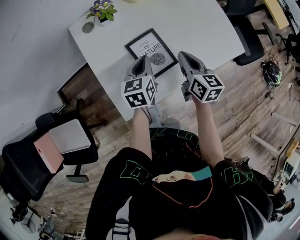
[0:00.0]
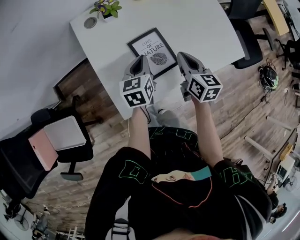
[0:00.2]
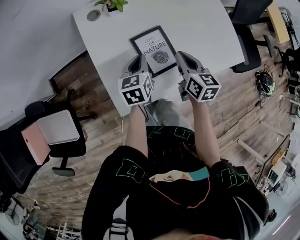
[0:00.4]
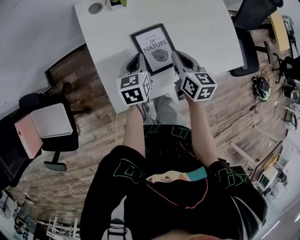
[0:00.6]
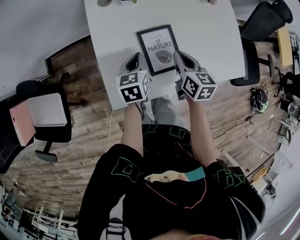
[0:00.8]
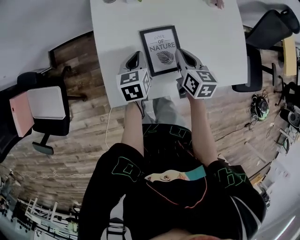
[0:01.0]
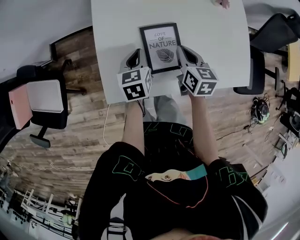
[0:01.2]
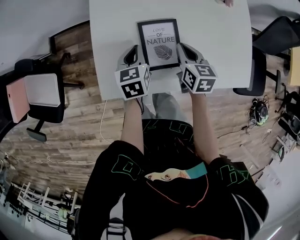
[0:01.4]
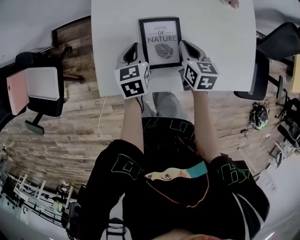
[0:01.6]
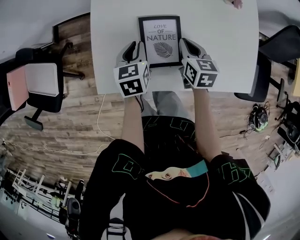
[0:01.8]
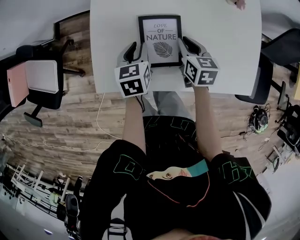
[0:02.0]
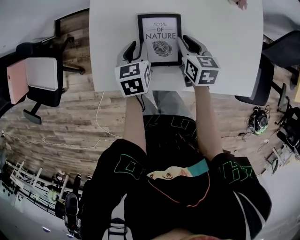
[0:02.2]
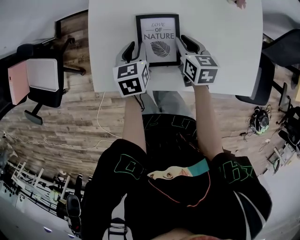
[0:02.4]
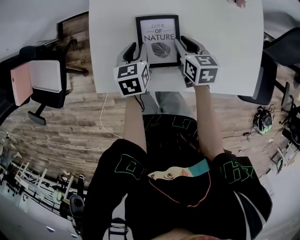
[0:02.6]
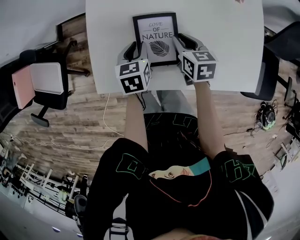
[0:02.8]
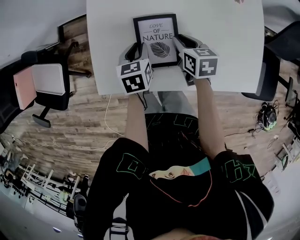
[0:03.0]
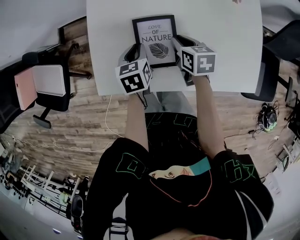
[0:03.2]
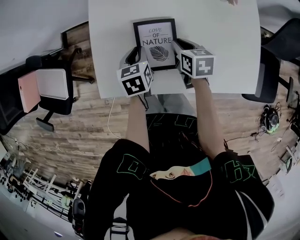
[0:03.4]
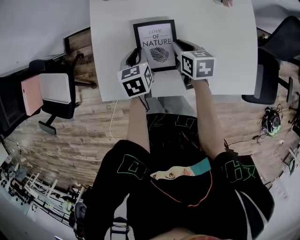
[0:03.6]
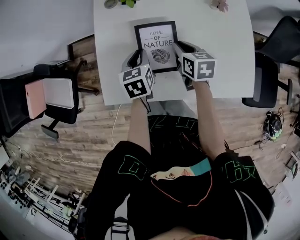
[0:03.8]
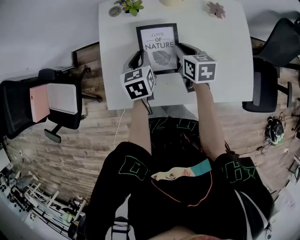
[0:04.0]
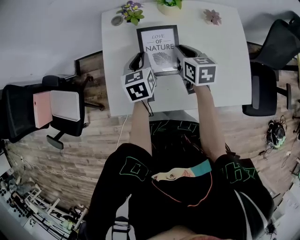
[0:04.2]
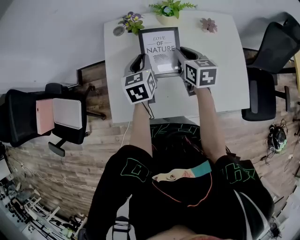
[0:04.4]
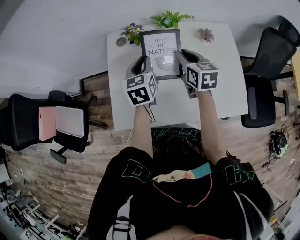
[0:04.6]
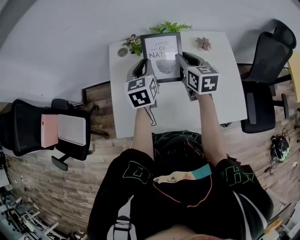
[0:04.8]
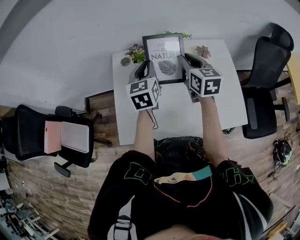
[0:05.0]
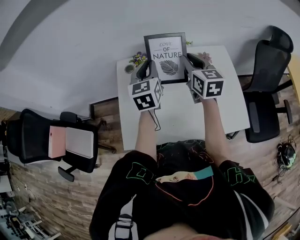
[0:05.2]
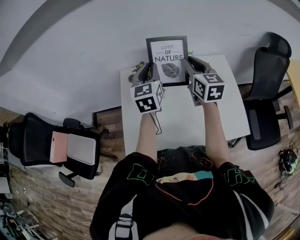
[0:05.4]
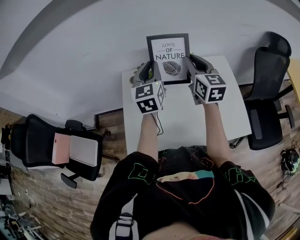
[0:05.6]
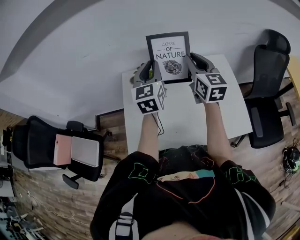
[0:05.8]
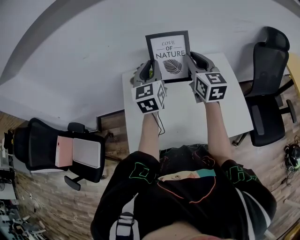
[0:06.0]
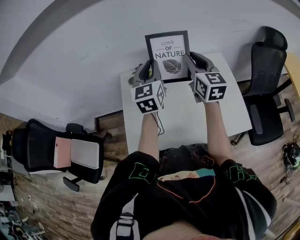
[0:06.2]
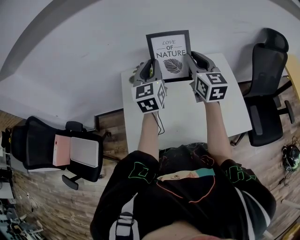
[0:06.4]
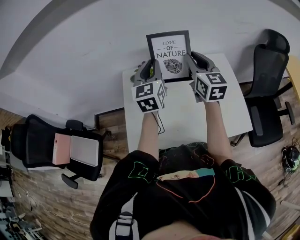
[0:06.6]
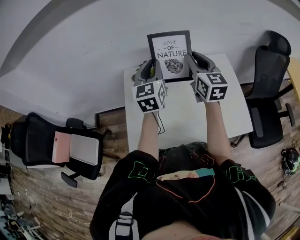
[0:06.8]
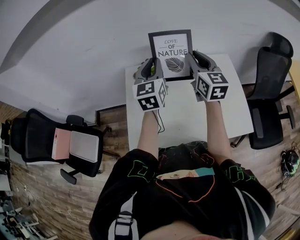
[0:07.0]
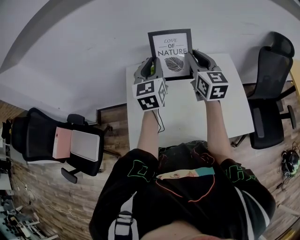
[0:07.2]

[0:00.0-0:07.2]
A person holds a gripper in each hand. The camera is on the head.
0:00.0 to 0:01.4: The right gripper moves downward and forward, approximately 10 cm, and swivels roughly 30 degrees, while the left gripper shifts some 10 cm downward and to the left, and rotates roughly 30 degrees.
0:01.4 to 0:02.8: The left gripper opens up.
0:02.8 to 0:04.4: Both grippers travel together upward and forward, roughly 15 cm.
0:04.4 to 0:05.8: The two grippers go some 20 cm upward. The right gripper swivels approximately 30 degrees, while the left gripper changes its angle by approximately 30 degrees.
0:05.8 to 0:07.2: The grippers make only small movements.

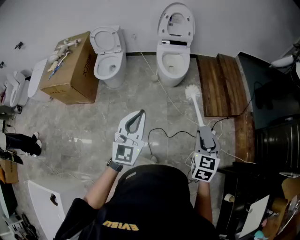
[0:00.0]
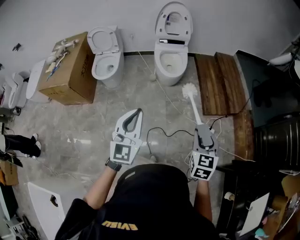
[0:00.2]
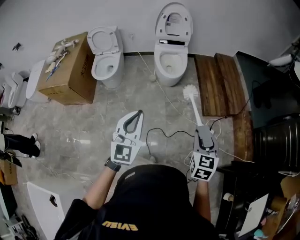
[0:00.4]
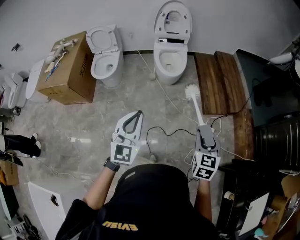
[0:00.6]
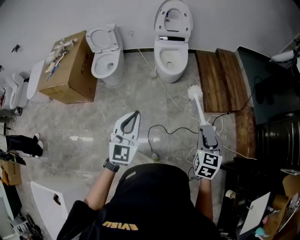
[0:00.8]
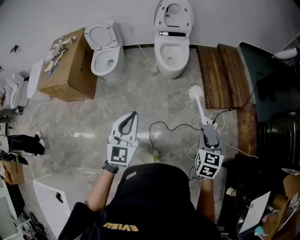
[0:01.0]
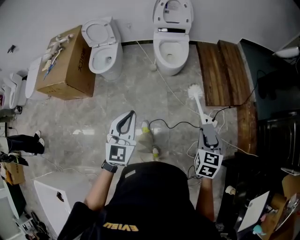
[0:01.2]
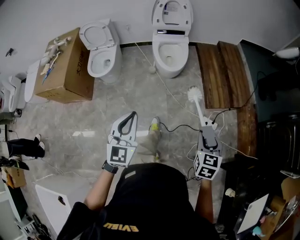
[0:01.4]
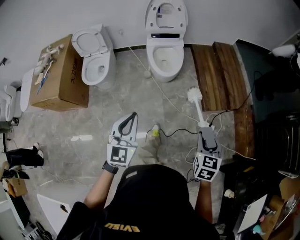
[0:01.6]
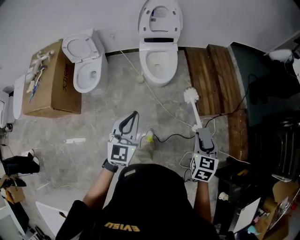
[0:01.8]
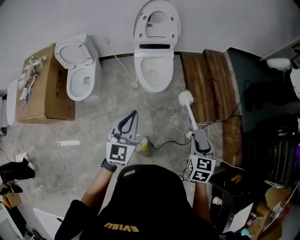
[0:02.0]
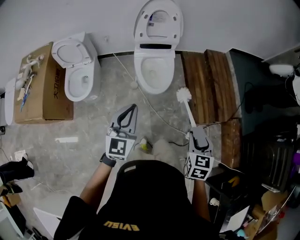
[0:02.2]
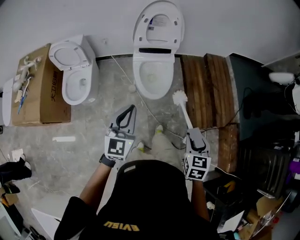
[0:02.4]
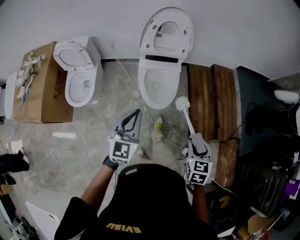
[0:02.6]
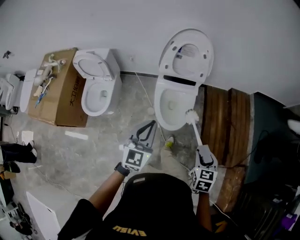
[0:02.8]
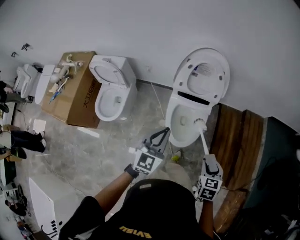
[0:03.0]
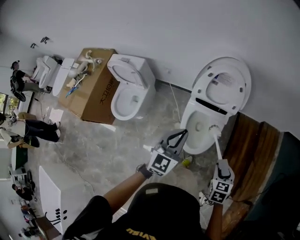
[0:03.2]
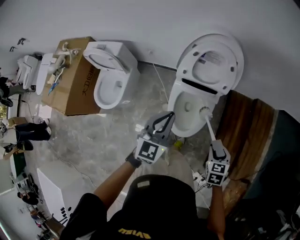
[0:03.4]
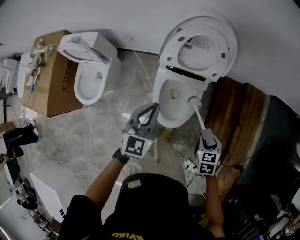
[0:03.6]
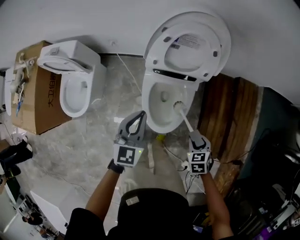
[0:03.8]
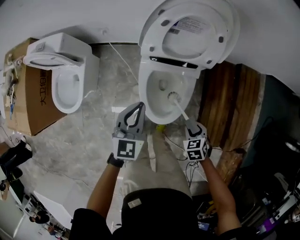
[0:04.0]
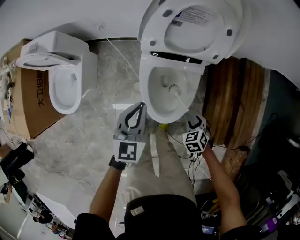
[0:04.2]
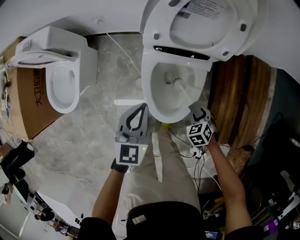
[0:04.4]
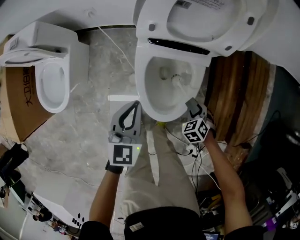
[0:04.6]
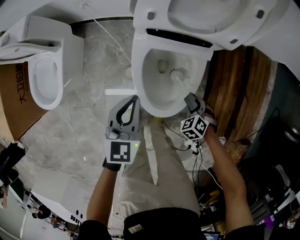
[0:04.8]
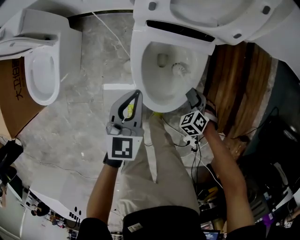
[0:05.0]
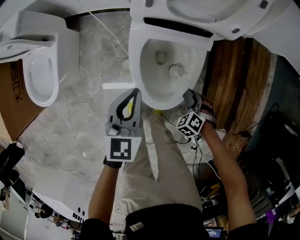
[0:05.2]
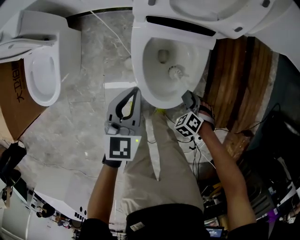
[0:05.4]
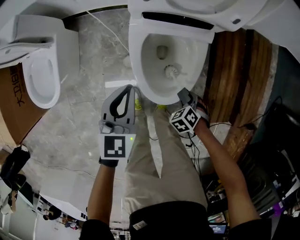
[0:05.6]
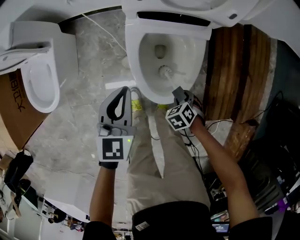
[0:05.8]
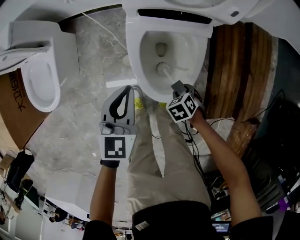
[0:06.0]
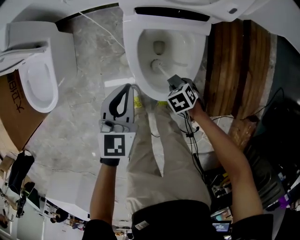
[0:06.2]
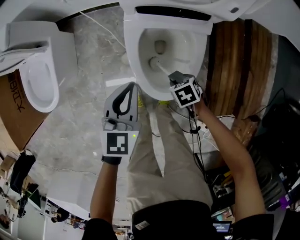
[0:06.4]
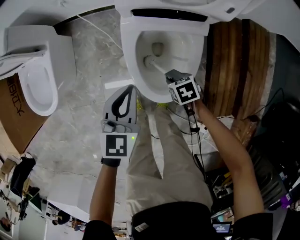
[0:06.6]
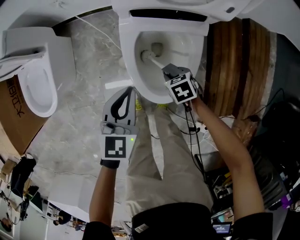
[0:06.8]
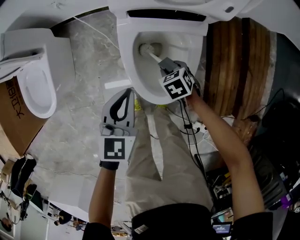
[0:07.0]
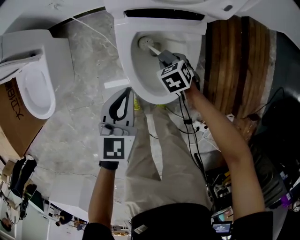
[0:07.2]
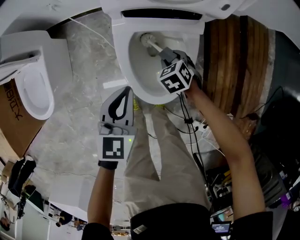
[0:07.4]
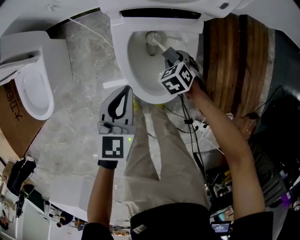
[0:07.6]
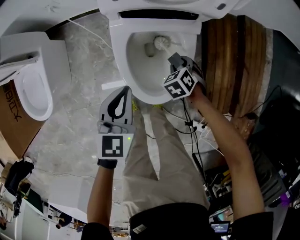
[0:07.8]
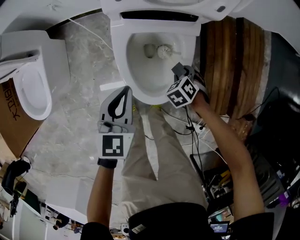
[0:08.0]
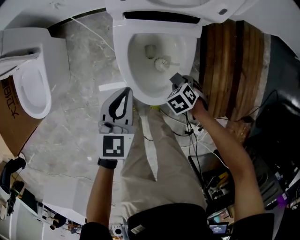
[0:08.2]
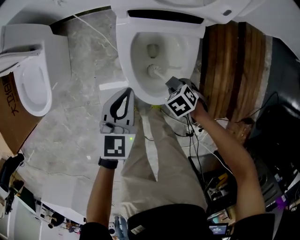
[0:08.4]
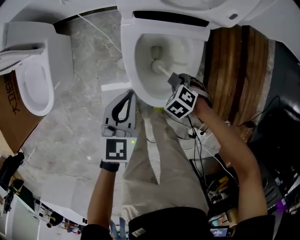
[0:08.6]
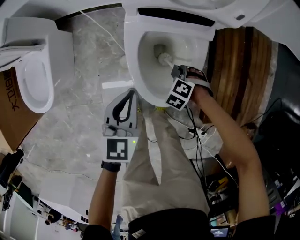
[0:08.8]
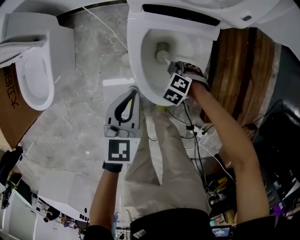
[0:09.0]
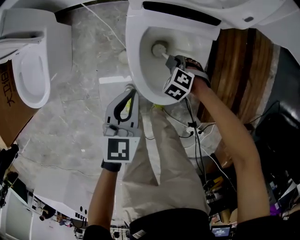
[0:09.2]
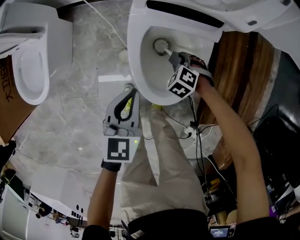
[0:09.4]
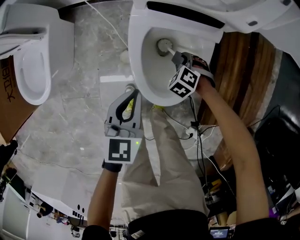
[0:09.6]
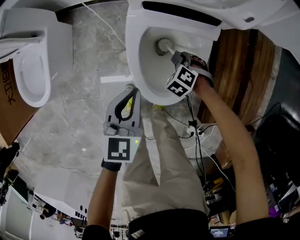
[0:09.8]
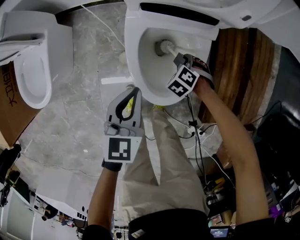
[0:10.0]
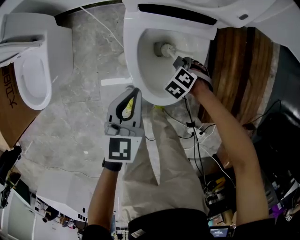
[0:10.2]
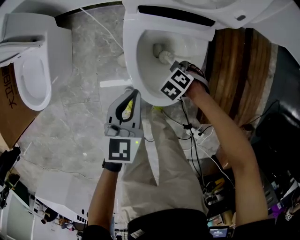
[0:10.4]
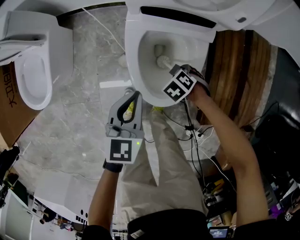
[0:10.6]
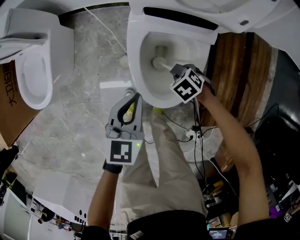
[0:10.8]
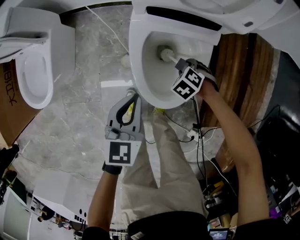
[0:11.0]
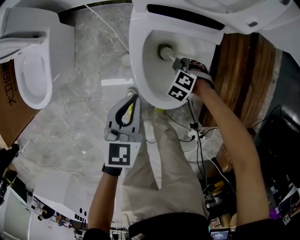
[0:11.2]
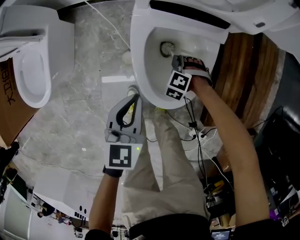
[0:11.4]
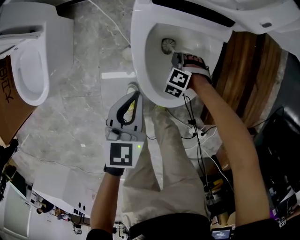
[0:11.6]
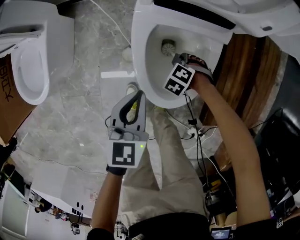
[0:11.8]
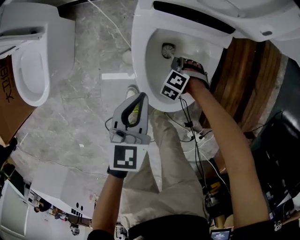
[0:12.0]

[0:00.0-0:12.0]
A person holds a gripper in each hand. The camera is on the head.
0:00.0 to 0:01.6: Both grippers move forward, about 15 cm.
0:01.6 to 0:03.0: The pair of grippers is taken forward, some 60 cm. The right gripper swivels some 20 degrees.
0:03.0 to 0:04.4: The two grippers go about 40 cm downward and forward. The right gripper rotates approximately 40 degrees.
0:04.4 to 0:06.0: Both grippers travel together downward, approximately 10 cm.
0:06.0 to 0:07.6: The right gripper ends up about 15 cm from where it was.
0:07.6 to 0:09.0: The right gripper moves some 10 cm, and changes its angle by some 40 degrees.
0:09.0 to 0:10.4: The grippers move only a little.
0:10.4 to 0:12.0: The right gripper goes some 10 cm downward.

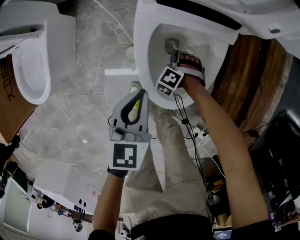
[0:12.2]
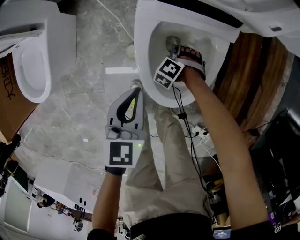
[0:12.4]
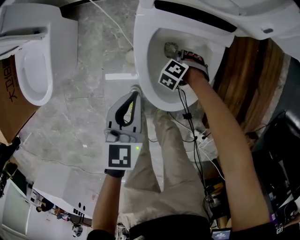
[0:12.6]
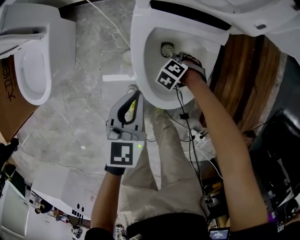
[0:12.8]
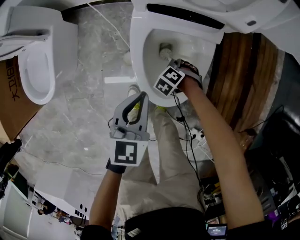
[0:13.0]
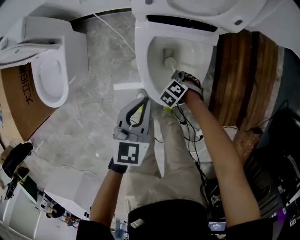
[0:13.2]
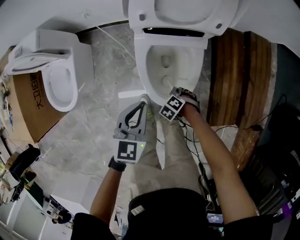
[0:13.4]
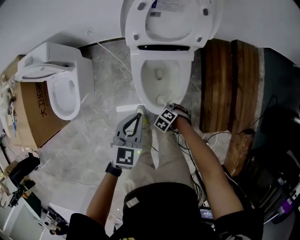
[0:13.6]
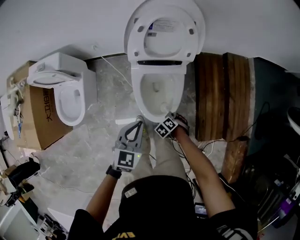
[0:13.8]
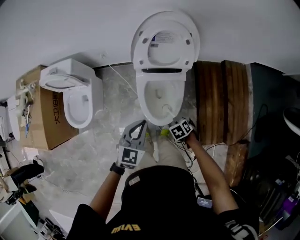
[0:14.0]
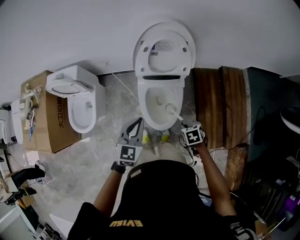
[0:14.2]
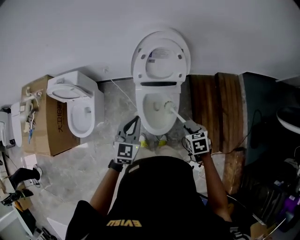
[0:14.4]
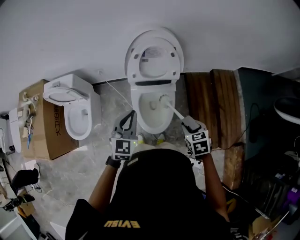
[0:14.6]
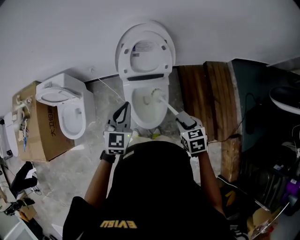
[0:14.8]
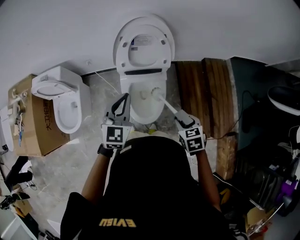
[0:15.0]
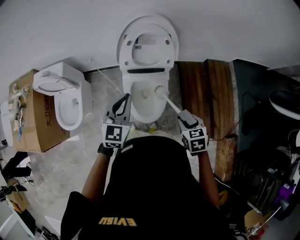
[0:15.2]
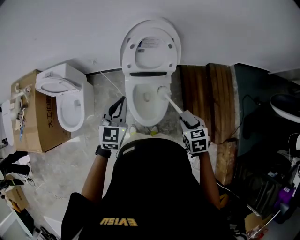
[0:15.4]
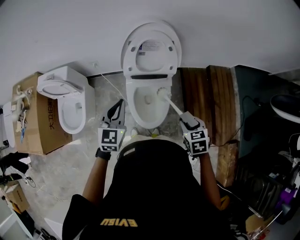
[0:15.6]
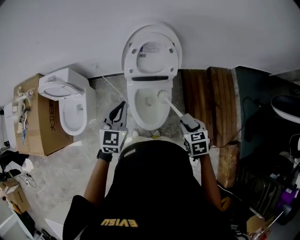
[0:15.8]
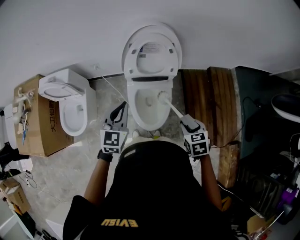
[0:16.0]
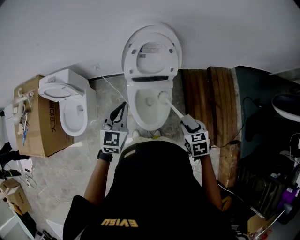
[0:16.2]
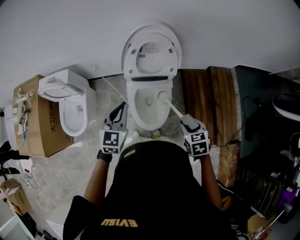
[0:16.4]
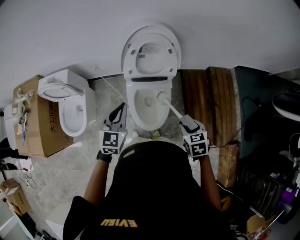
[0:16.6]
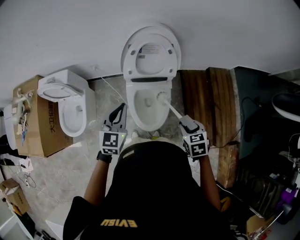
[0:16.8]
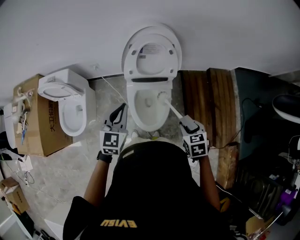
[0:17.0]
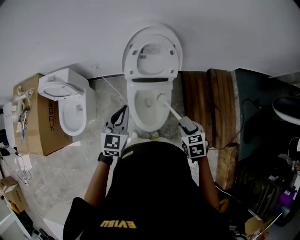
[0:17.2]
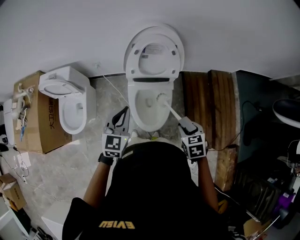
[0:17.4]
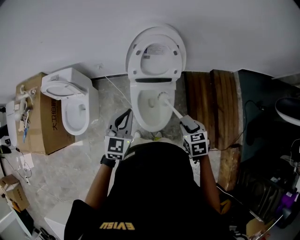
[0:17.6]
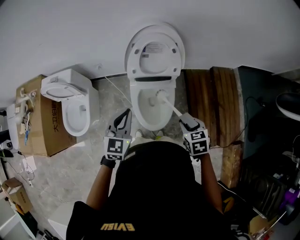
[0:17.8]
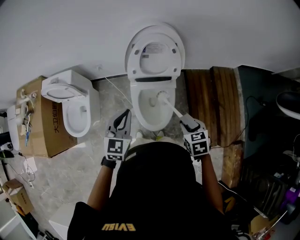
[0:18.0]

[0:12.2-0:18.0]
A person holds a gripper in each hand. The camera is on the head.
0:12.2 to 0:13.6: Both grippers move upward, roughly 20 cm. The right gripper changes its angle by some 30 degrees. Meanwhile the left gripper turns by approximately 30 degrees.
0:13.6 to 0:15.0: The left gripper moves upward, some 25 cm. The right gripper moves upward, approximately 40 cm, and swivels some 60 degrees.
0:15.0 to 0:16.6: The left gripper moves about 5 cm.
0:16.6 to 0:18.0: There are only small adjustments of the grippers.
